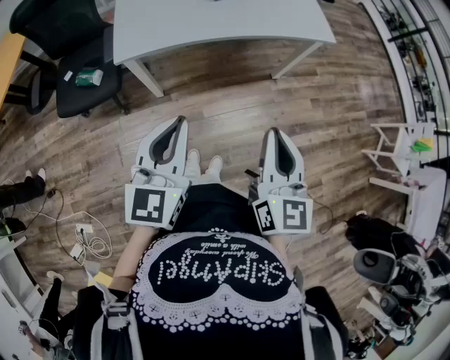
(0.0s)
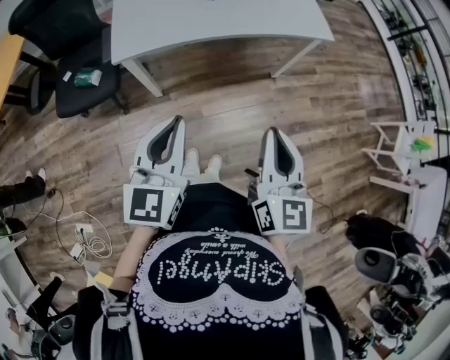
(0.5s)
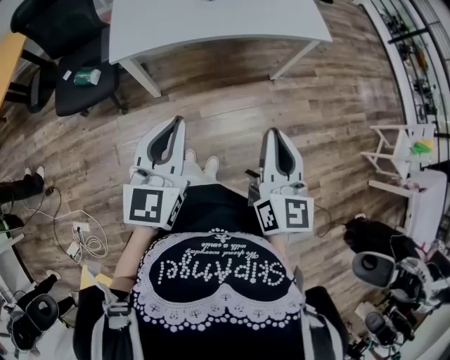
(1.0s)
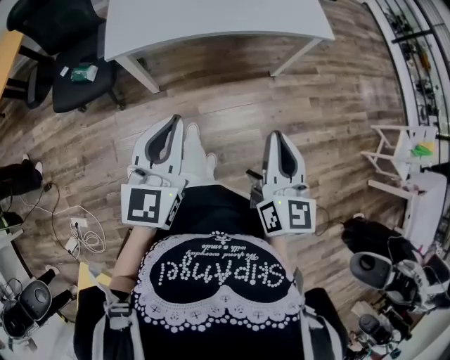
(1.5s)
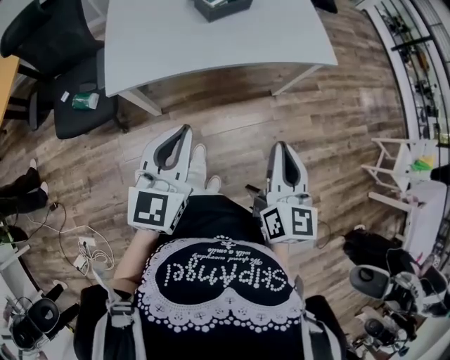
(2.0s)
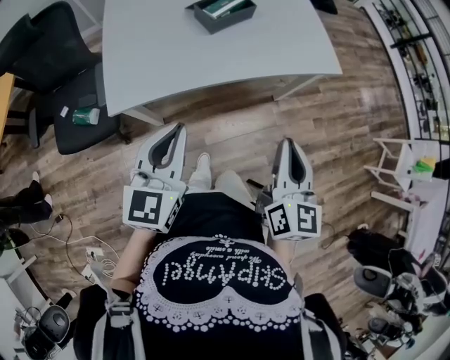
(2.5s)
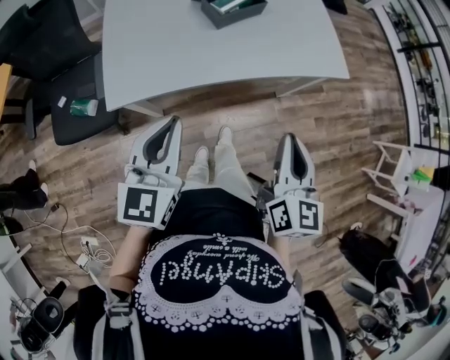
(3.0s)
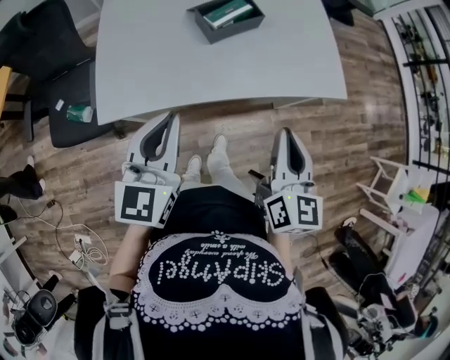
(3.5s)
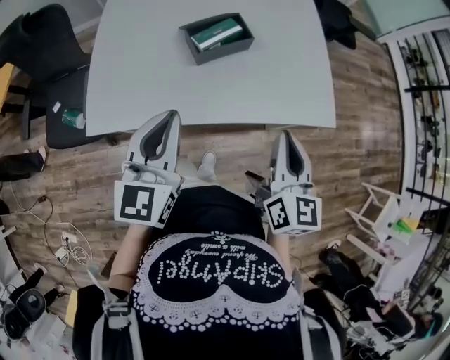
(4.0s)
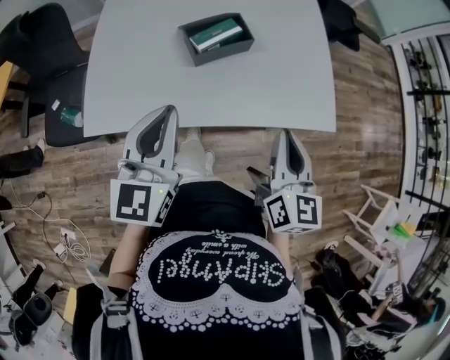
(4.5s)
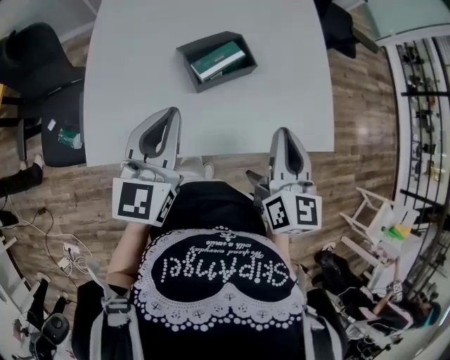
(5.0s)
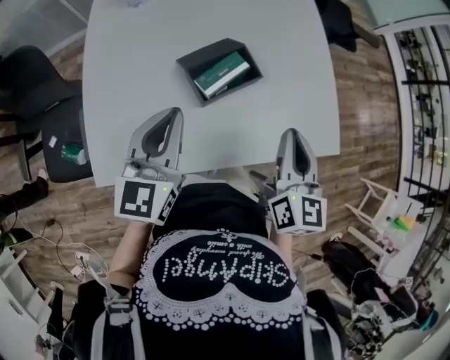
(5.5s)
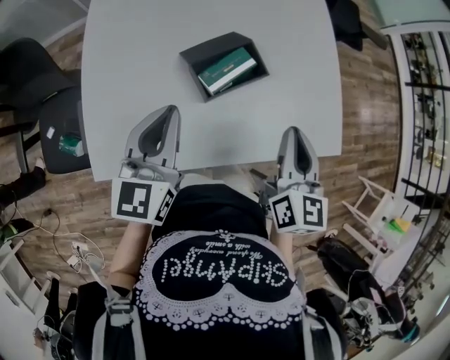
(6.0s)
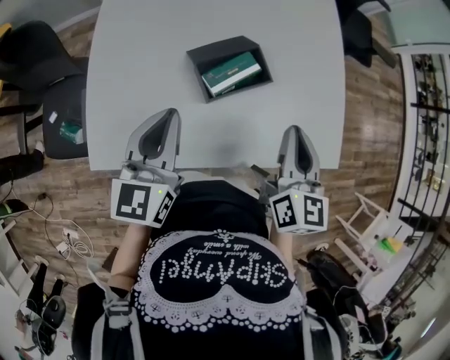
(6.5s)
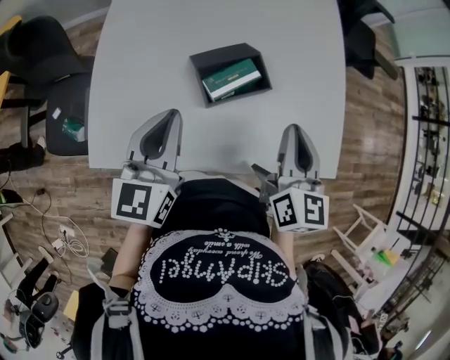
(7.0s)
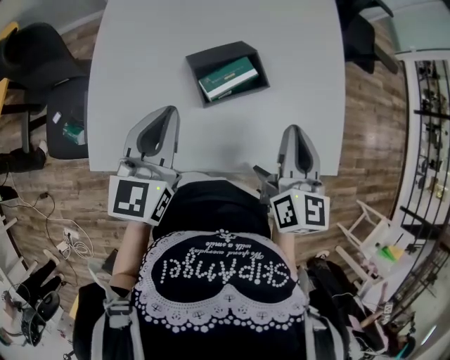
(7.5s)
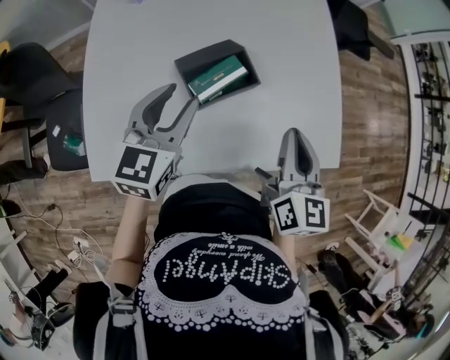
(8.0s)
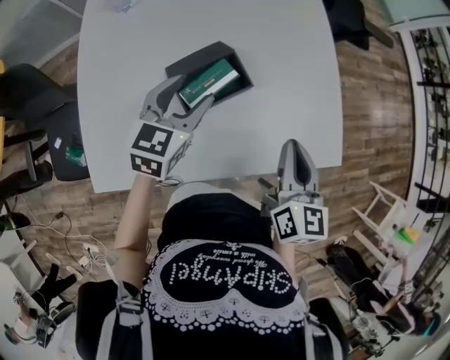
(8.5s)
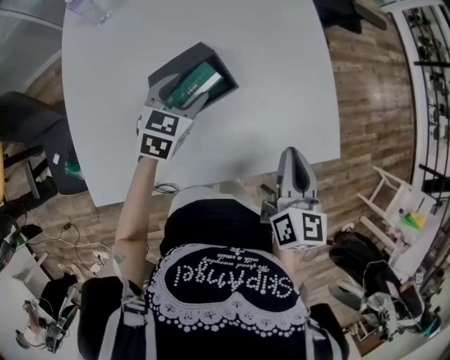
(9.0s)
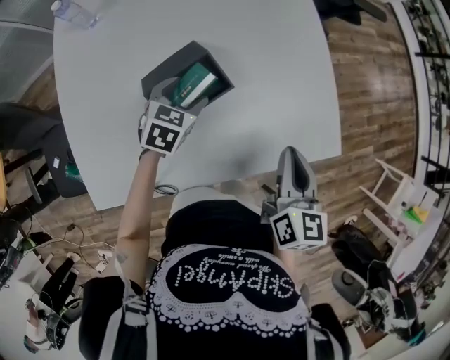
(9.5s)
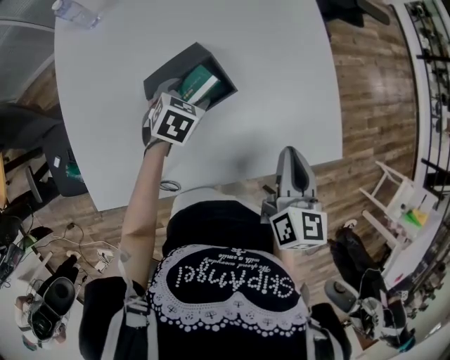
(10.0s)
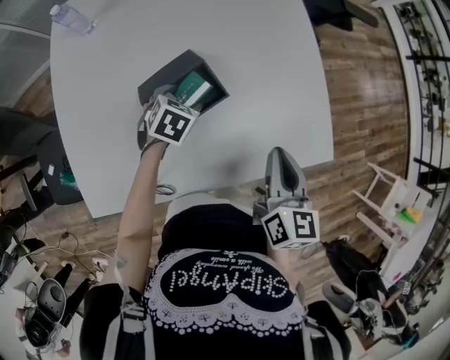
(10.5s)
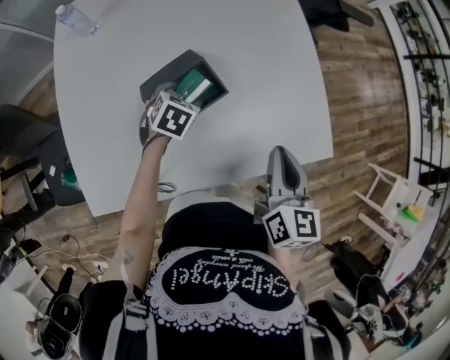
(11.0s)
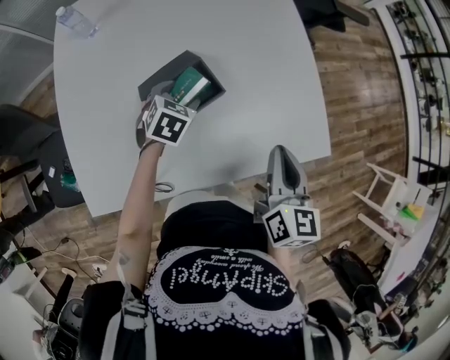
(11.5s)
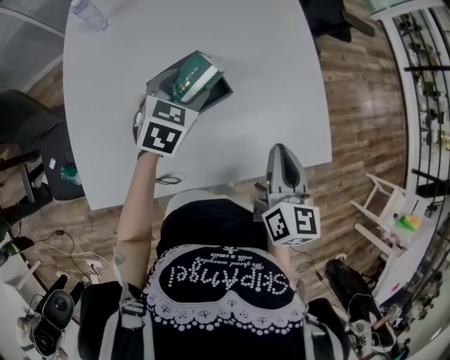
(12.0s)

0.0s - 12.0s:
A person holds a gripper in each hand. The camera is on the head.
0.0s - 2.0s: Both grippers move forward, about 10 cm.
2.0s - 4.0s: The grippers both shift forward by roughly 25 cm.
4.0s - 6.0s: The two grippers go roughly 20 cm forward and to the left.
6.0s - 8.0s: The left gripper moves forward and to the right, about 10 cm, and opens up.
8.0s - 10.0s: The left gripper travels downward and forward by about 25 cm, tilts its fingers some 40 degrees downward, and opens, while the right gripper is displaced downward and to the right by roughly 10 cm.
10.0s - 12.0s: The left gripper goes about 10 cm upward.

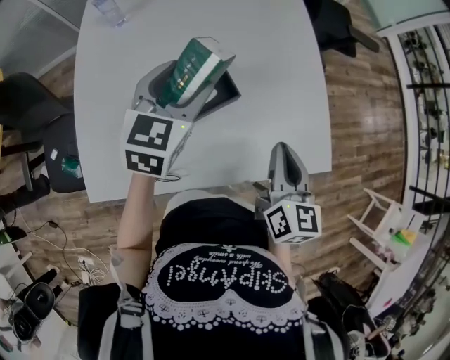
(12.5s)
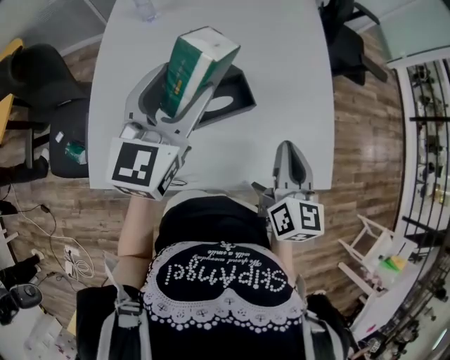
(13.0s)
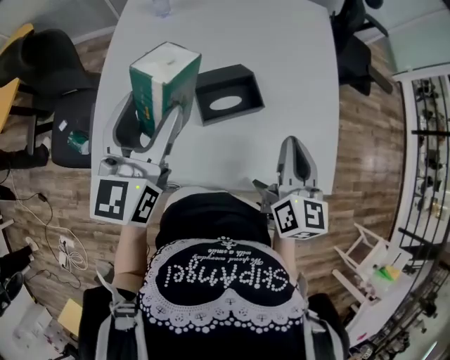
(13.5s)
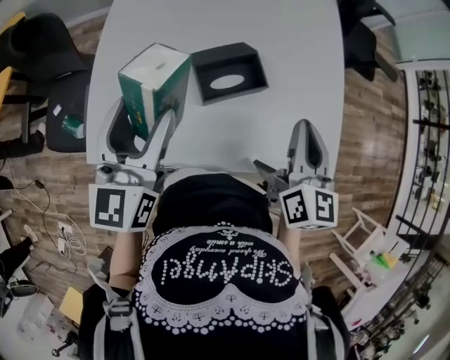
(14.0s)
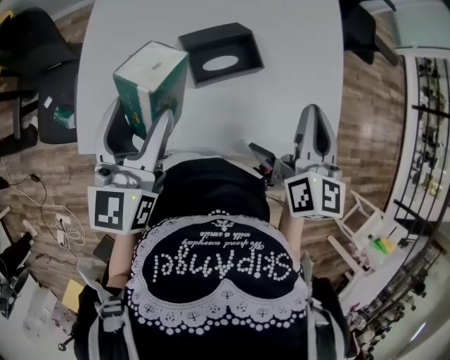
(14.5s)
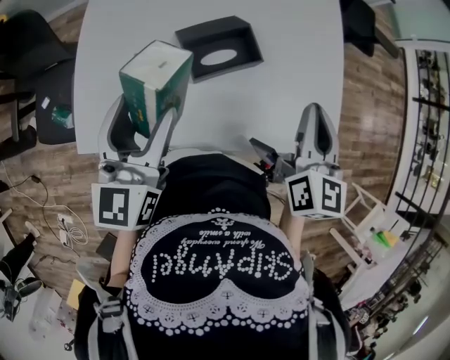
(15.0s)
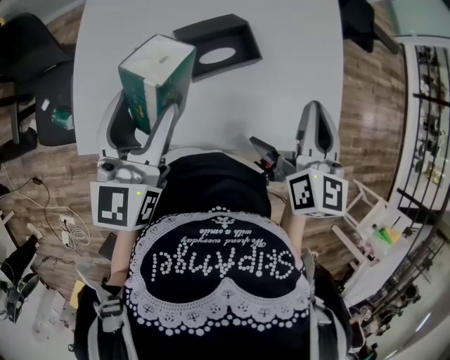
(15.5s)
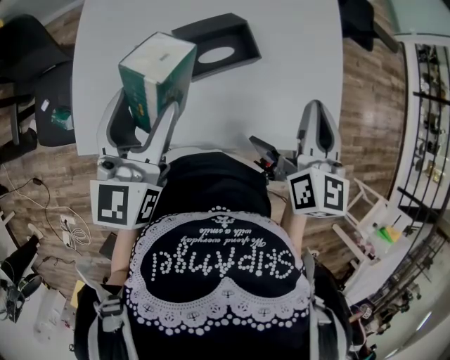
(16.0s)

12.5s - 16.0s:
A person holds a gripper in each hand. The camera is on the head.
12.5s - 14.5s: The left gripper shifts roughly 20 cm backward and to the left, and changes its angle by about 30 degrees; the right gripper moves about 5 cm.
14.5s - 16.0s: The grippers stay close to where they were, moving slightly.

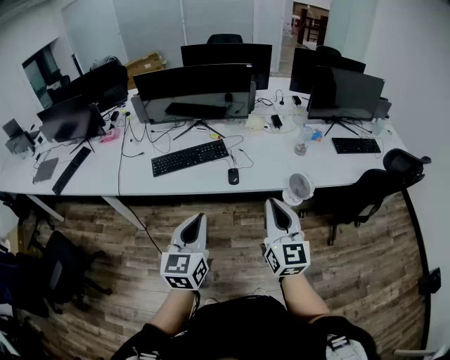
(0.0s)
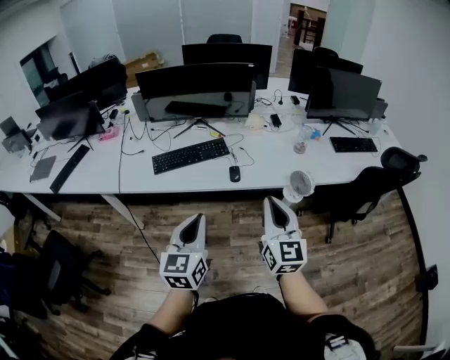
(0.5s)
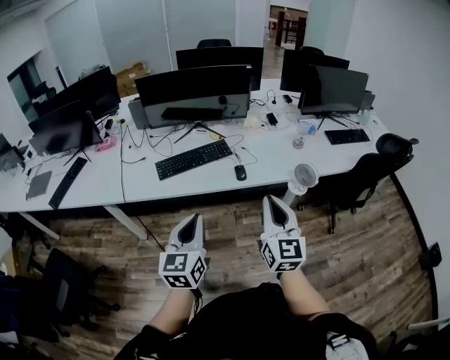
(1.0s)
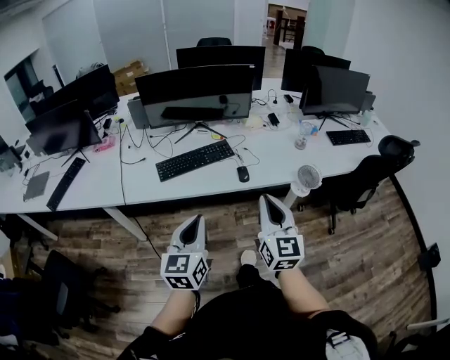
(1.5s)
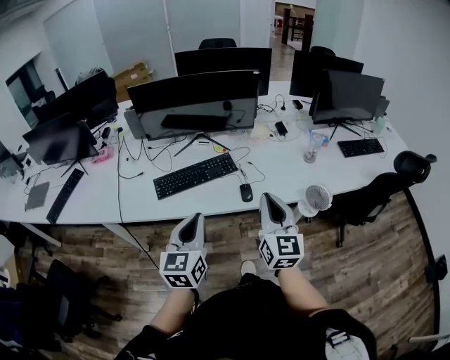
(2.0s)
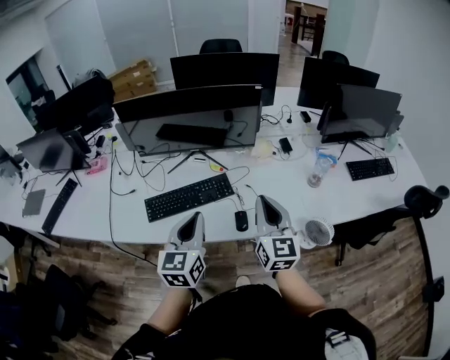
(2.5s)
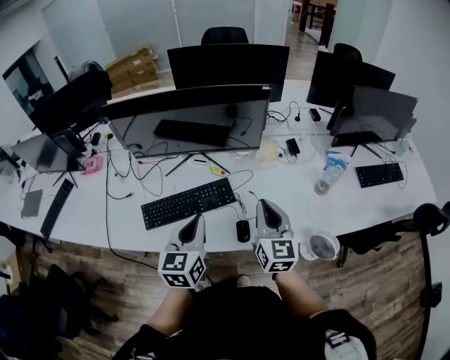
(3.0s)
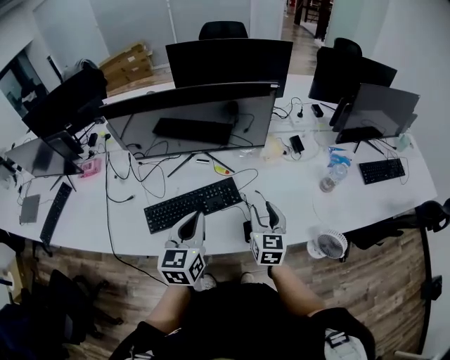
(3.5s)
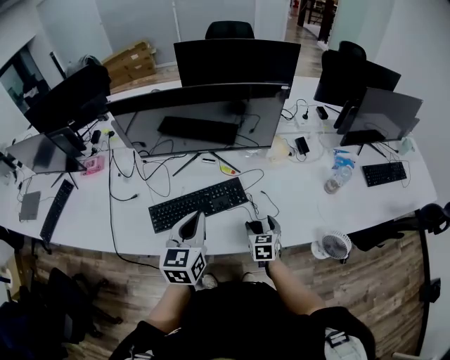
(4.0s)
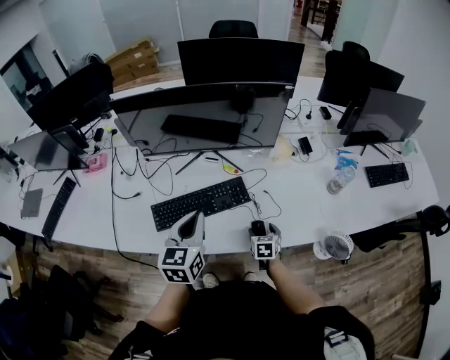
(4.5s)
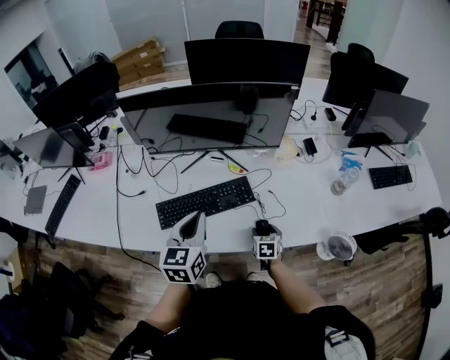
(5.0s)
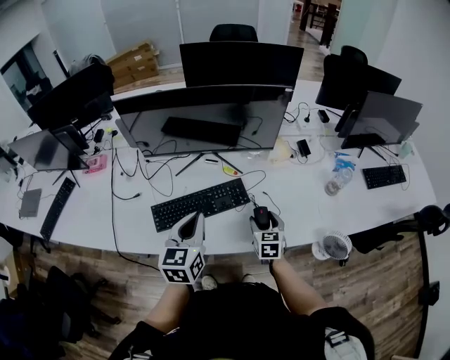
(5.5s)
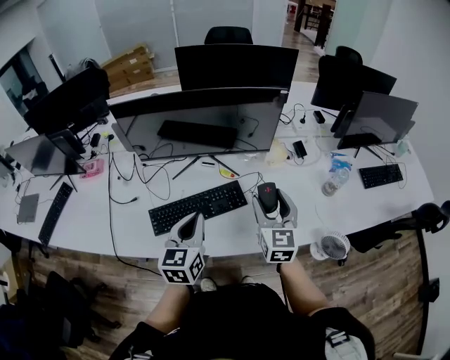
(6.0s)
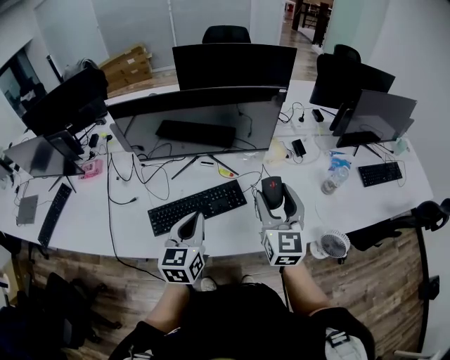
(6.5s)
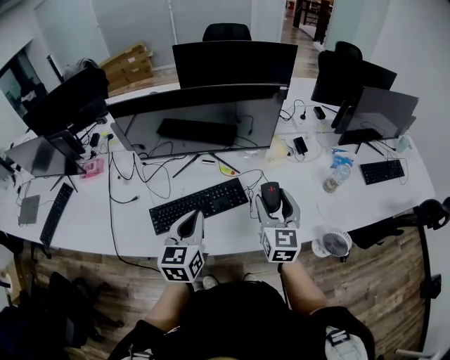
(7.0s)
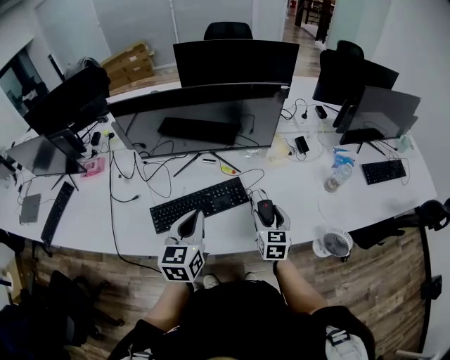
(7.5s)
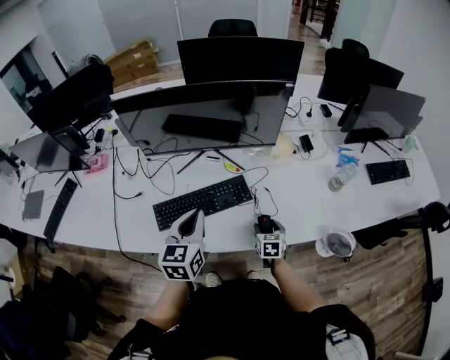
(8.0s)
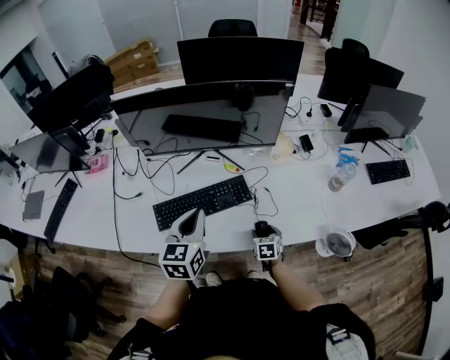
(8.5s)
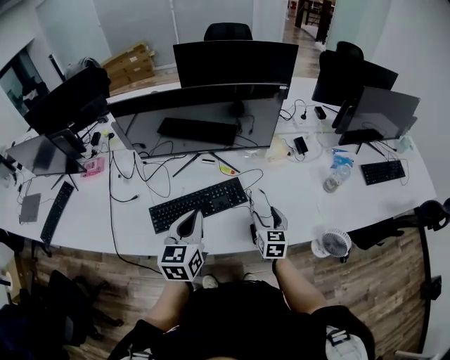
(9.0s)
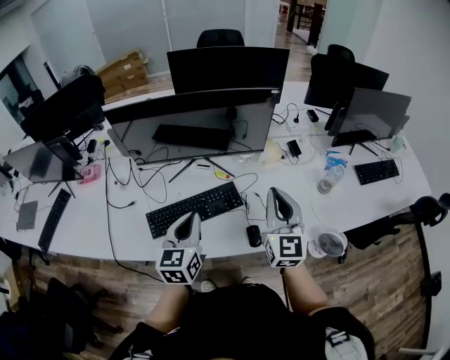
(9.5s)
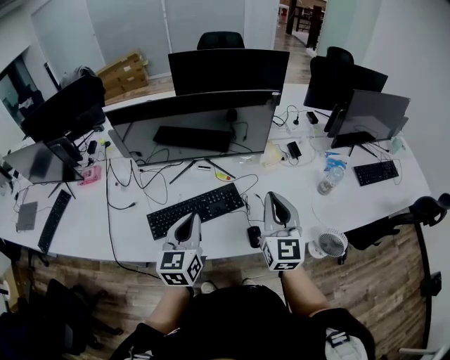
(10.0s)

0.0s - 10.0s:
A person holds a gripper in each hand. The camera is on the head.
0.0s - 2.0s: The two grippers go some 15 cm forward and to the left.
2.0s - 4.0s: The right gripper is displaced downward and forward by about 40 cm, tilts its fingers some 40 degrees downward, and opens. The left gripper travels forward by approximately 25 cm.
4.0s - 6.0s: The right gripper travels upward by some 25 cm, and swivels approximately 30 degrees.
6.0s - 8.0s: The right gripper travels downward by some 30 cm, and tips its fingers downward by about 30 degrees.
8.0s - 10.0s: The right gripper travels upward by about 35 cm, angles its fingers upward, by some 50 degrees, and closes its fingers.

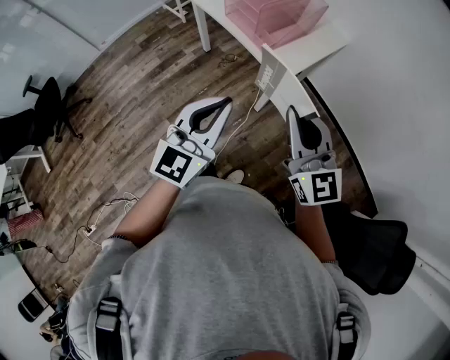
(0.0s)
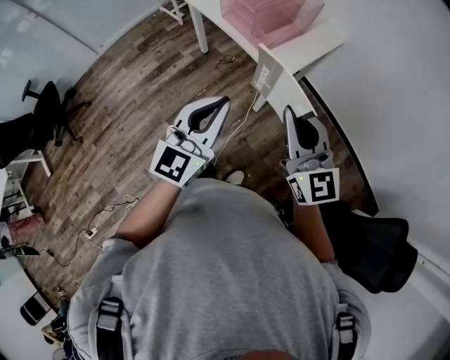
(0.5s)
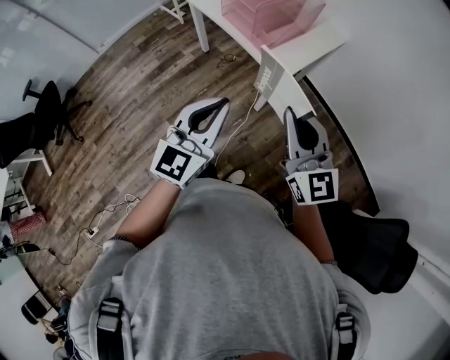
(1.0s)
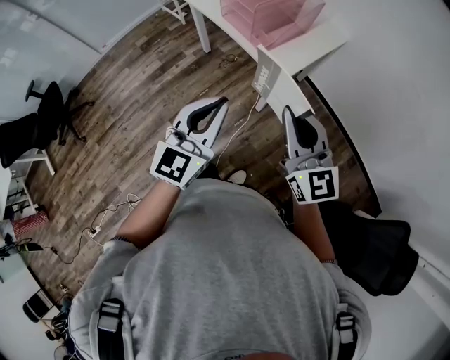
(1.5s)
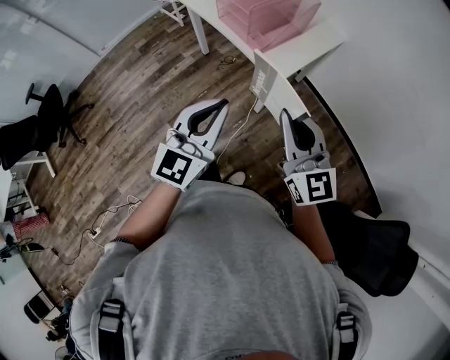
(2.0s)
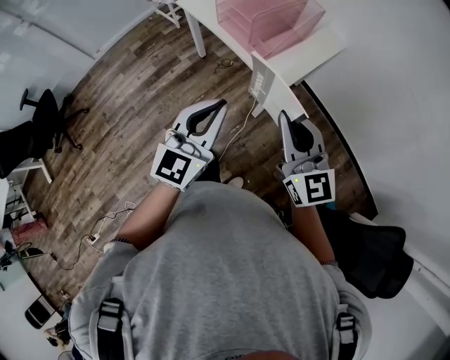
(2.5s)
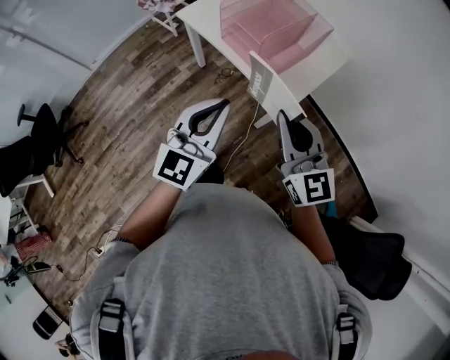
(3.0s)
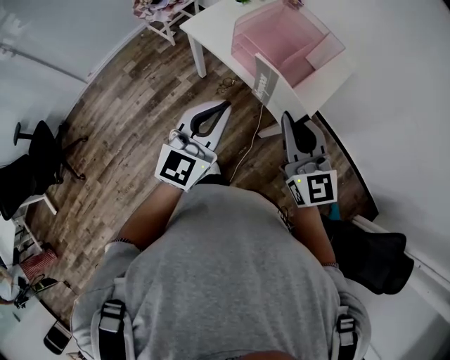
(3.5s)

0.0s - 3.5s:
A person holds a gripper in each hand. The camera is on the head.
0.0s - 2.0s: The grippers move only a little.
2.0s - 3.5s: Both grippers move forward and to the left, approximately 25 cm.
